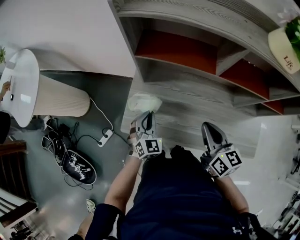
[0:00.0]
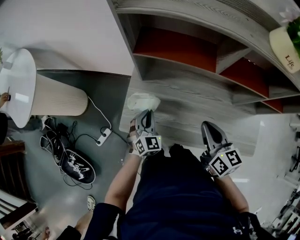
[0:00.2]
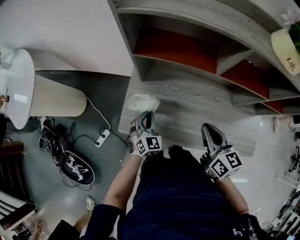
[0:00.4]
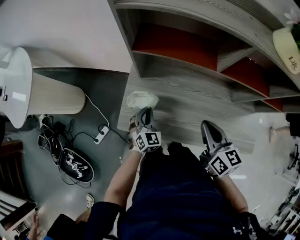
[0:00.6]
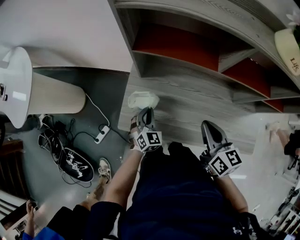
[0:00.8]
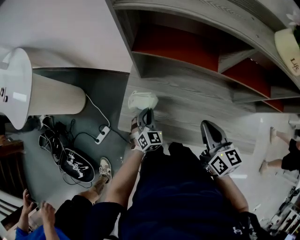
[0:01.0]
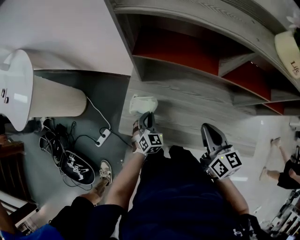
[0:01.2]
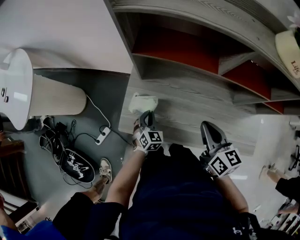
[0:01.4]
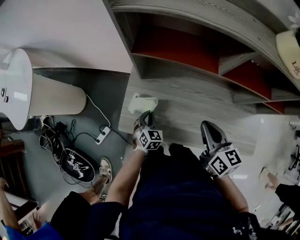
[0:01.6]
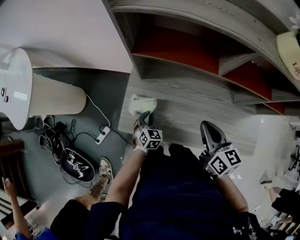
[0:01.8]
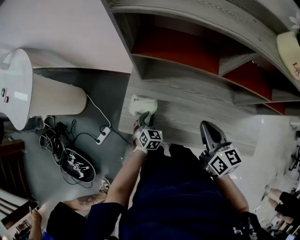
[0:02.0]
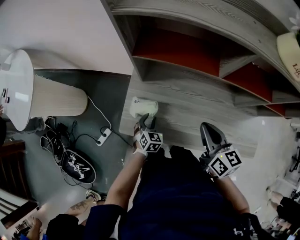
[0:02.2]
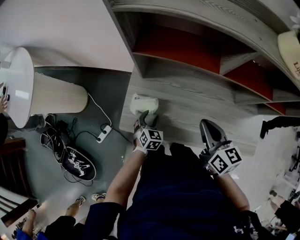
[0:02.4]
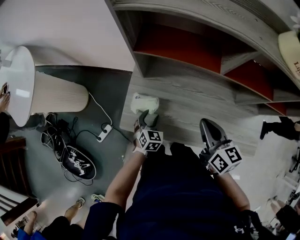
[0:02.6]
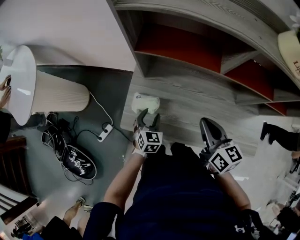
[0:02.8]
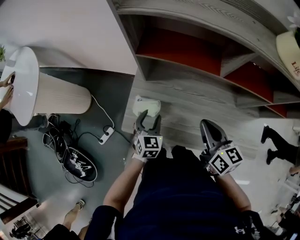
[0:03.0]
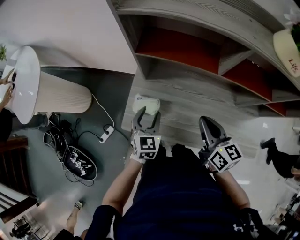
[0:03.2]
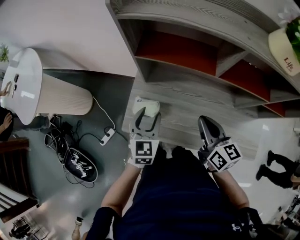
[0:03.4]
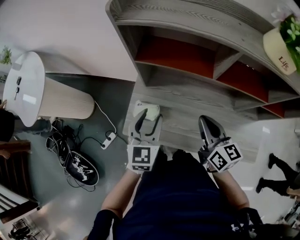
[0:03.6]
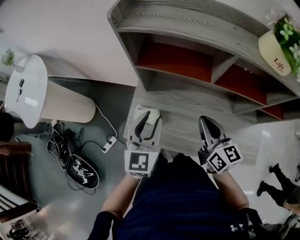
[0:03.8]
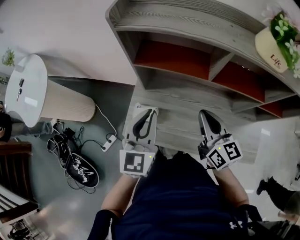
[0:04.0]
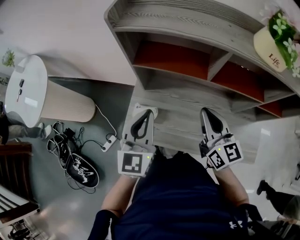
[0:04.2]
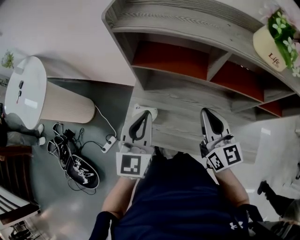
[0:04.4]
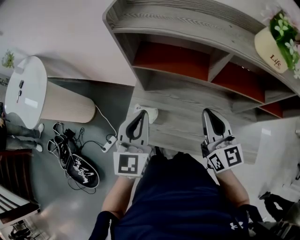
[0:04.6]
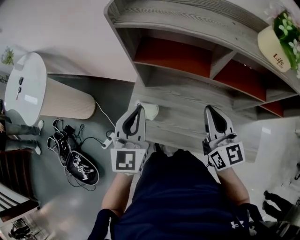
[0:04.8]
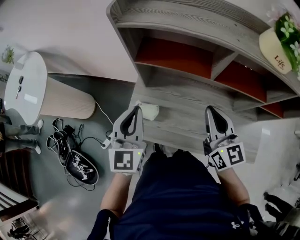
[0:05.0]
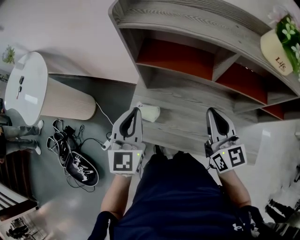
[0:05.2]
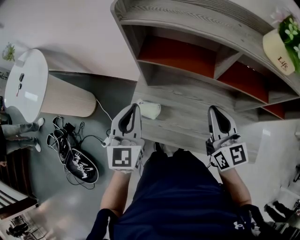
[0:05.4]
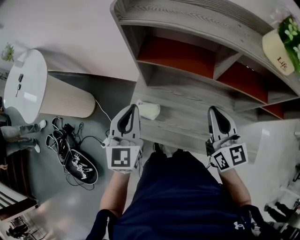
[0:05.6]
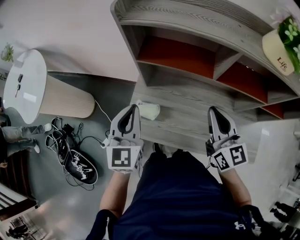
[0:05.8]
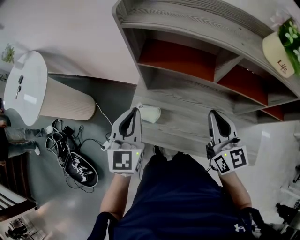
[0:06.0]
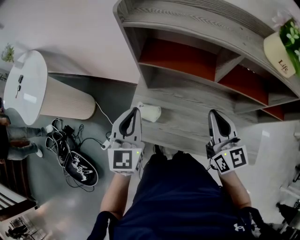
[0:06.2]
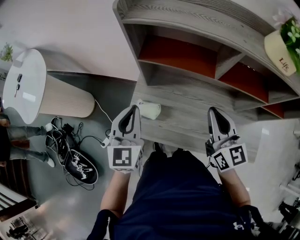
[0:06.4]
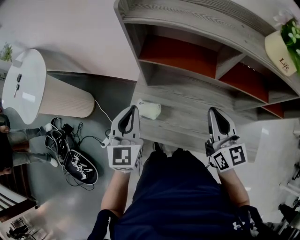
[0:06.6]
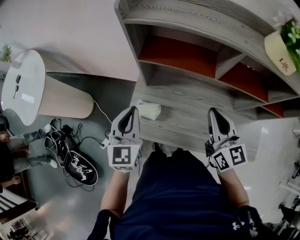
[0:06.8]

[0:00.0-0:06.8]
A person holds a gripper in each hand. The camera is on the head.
0:00.0 to 0:01.4: The left gripper shifts about 10 cm downward.
0:01.4 to 0:02.8: The left gripper opens.
0:02.8 to 0:04.0: The right gripper goes approximately 10 cm upward. The left gripper moves upward, approximately 30 cm, tilts its fingers roughly 30 degrees upward, and closes its fingers.
0:04.0 to 0:05.4: The left gripper heads to the left, covering some 5 cm.
0:05.4 to 0:06.8: The grippers stay close to where they were, moving slightly.

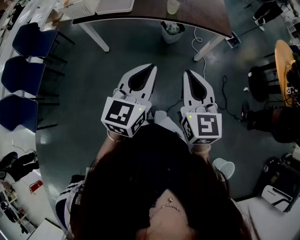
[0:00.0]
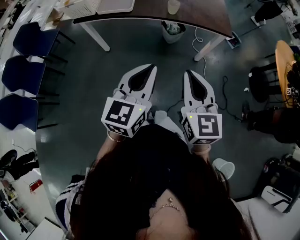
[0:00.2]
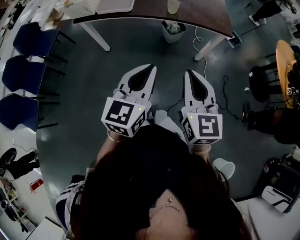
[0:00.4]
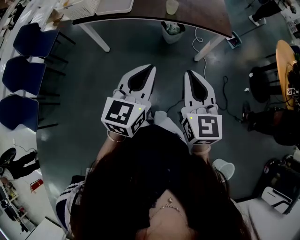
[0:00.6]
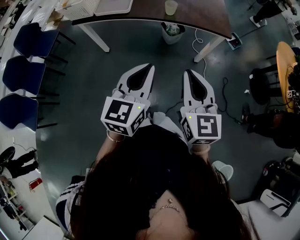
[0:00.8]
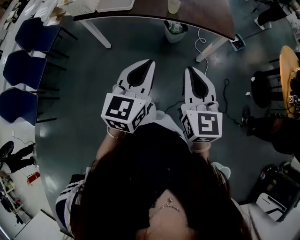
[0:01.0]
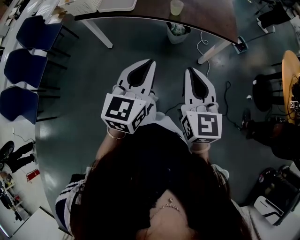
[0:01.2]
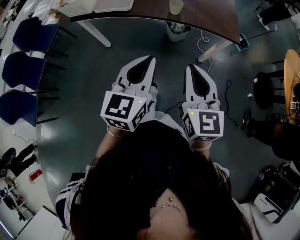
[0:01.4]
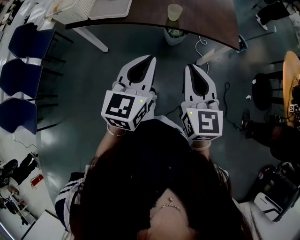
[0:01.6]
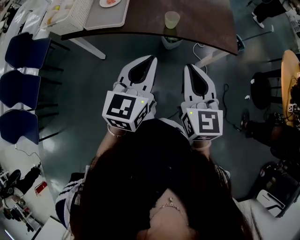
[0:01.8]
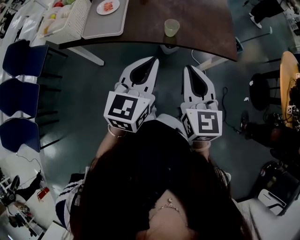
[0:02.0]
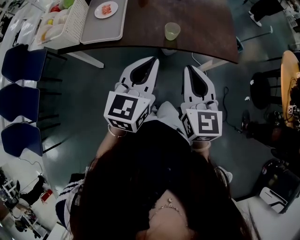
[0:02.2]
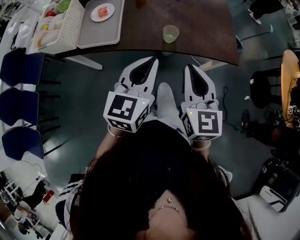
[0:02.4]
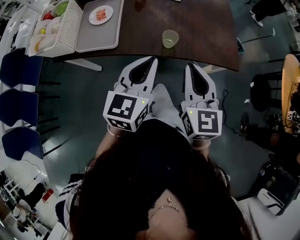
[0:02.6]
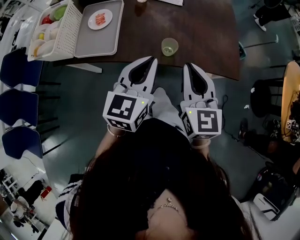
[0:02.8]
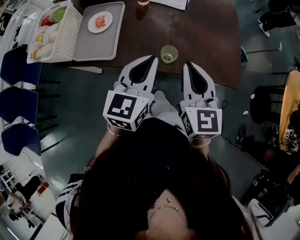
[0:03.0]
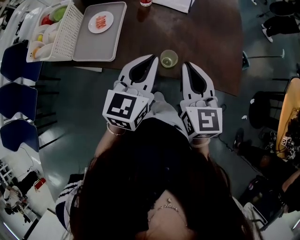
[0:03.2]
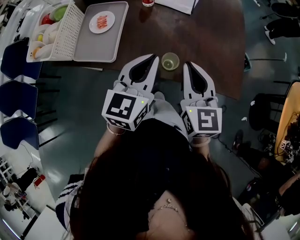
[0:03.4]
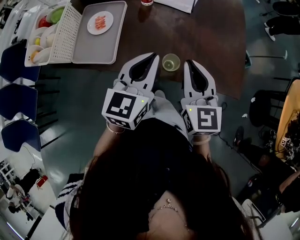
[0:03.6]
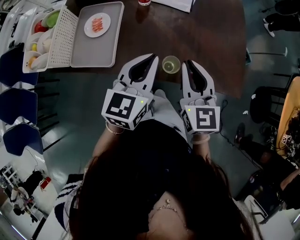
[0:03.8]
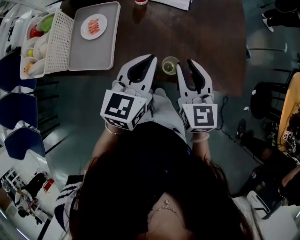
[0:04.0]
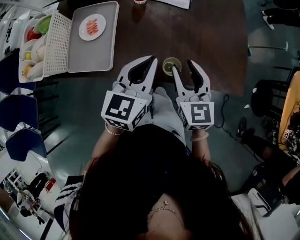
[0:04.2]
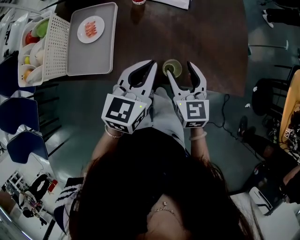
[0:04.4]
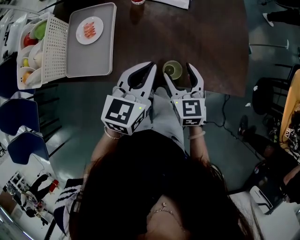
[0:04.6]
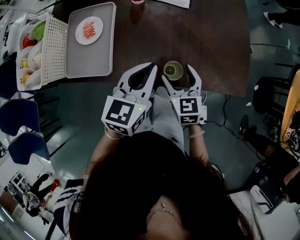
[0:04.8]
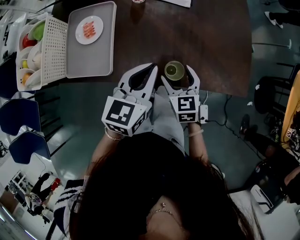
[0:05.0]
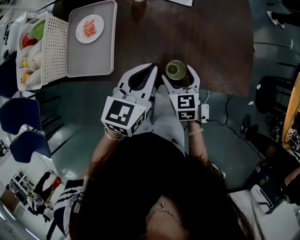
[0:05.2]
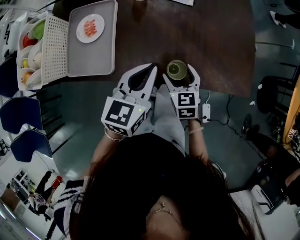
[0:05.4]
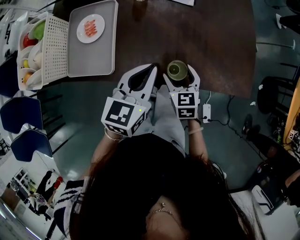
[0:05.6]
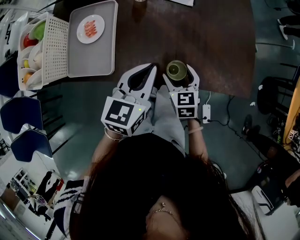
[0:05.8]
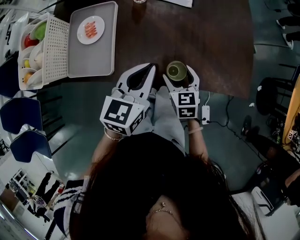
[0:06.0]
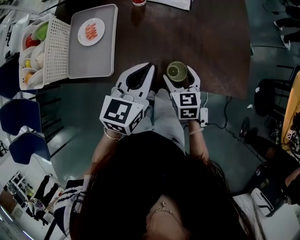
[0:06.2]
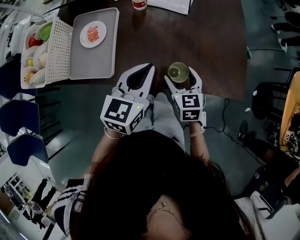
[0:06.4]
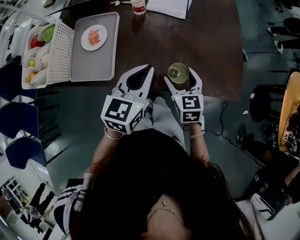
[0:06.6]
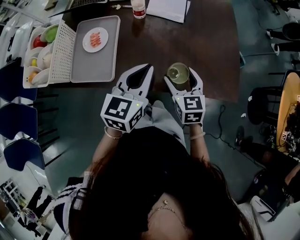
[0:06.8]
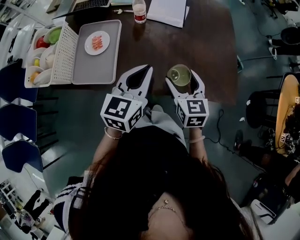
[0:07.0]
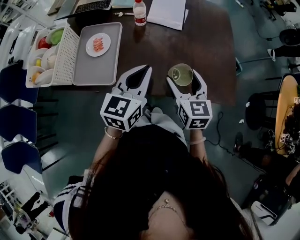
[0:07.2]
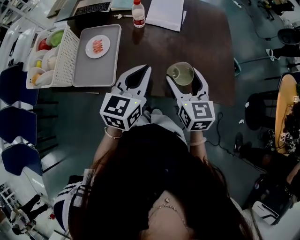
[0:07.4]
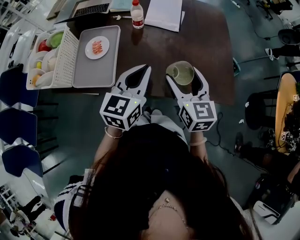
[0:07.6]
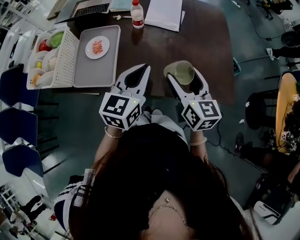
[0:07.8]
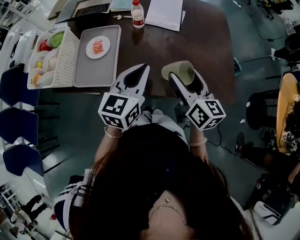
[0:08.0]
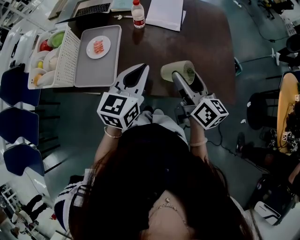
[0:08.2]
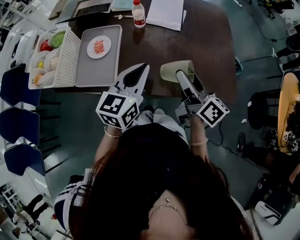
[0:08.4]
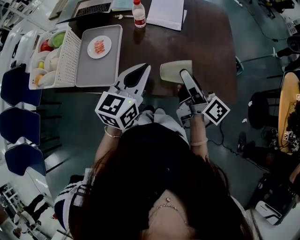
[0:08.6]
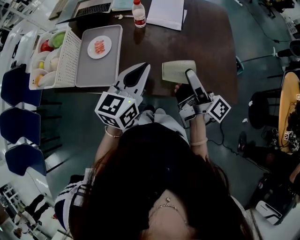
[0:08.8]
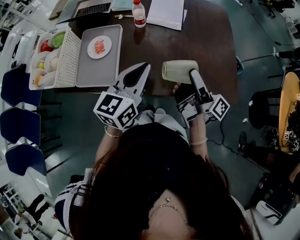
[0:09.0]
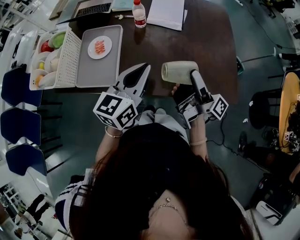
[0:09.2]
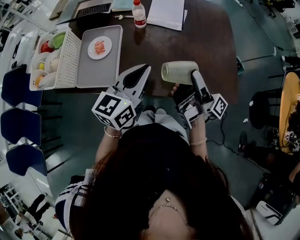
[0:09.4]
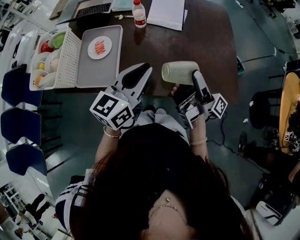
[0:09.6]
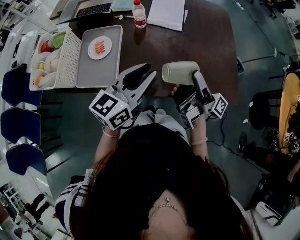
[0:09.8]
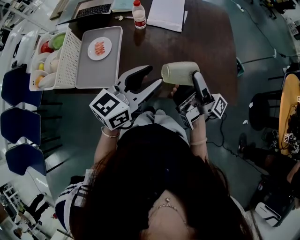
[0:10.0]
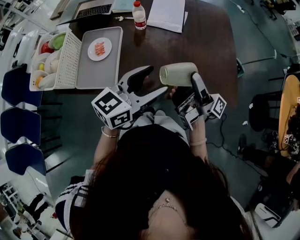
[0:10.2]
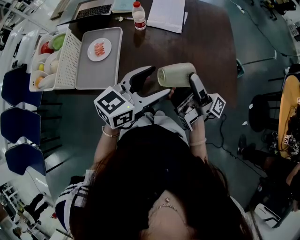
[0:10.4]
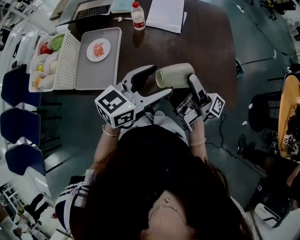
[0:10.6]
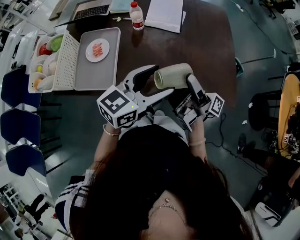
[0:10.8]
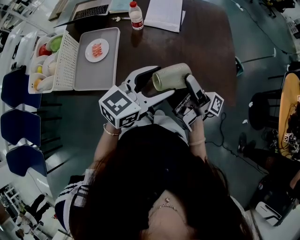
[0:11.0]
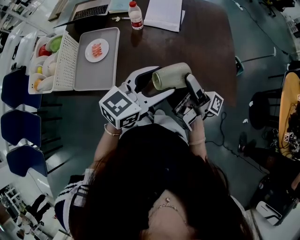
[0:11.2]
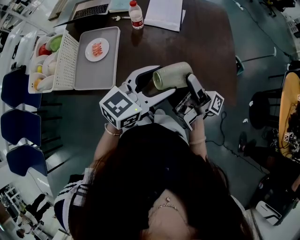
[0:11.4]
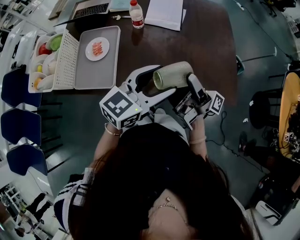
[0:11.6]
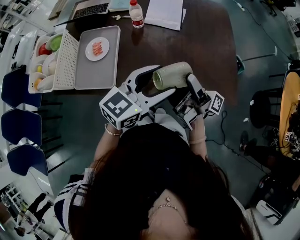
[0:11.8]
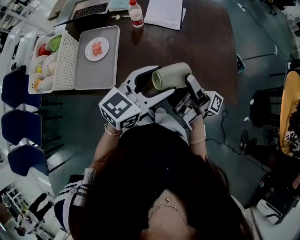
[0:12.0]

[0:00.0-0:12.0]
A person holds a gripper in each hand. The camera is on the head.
0:00.0 to 0:01.6: The two grippers go approximately 15 cm forward.
0:01.6 to 0:03.0: The two grippers go some 30 cm forward.
0:03.0 to 0:04.4: The right gripper is displaced downward and forward by approximately 15 cm, and opens its fingers. Meanwhile the left gripper travels forward and downward by about 10 cm.
0:04.4 to 0:06.0: The right gripper moves downward, roughly 10 cm.
0:06.0 to 0:07.6: The right gripper shifts some 20 cm upward, and rotates roughly 20 degrees. Meanwhile the left gripper goes roughly 5 cm upward.
0:07.6 to 0:09.0: The right gripper twists about 80 degrees clockwise, seen from behind.
0:09.0 to 0:10.4: The left gripper goes roughly 5 cm to the right, rotates some 20 degrees, and opens its fingers.
0:10.4 to 0:12.0: The grippers make only small movements.

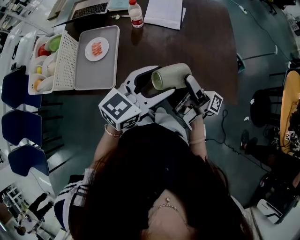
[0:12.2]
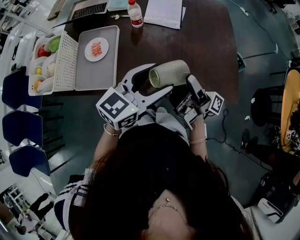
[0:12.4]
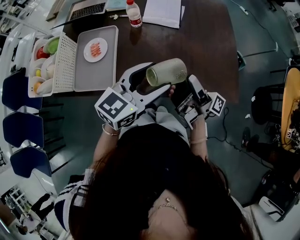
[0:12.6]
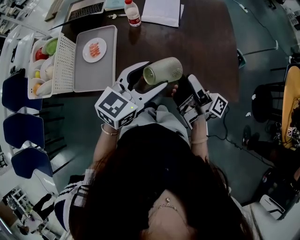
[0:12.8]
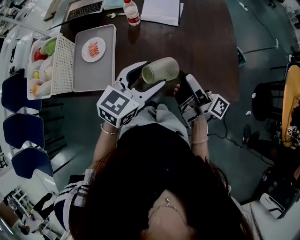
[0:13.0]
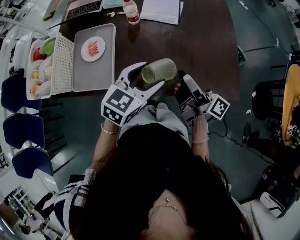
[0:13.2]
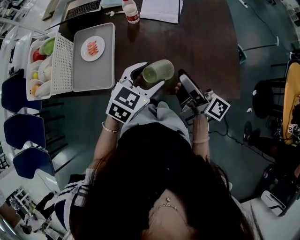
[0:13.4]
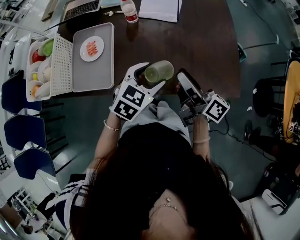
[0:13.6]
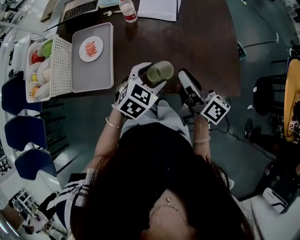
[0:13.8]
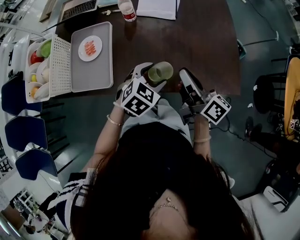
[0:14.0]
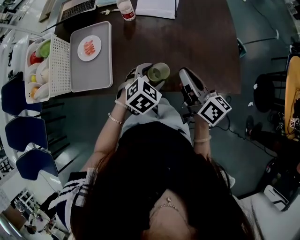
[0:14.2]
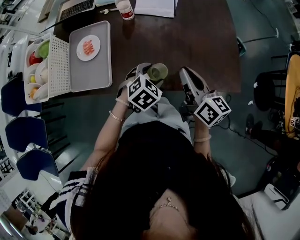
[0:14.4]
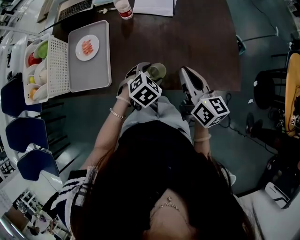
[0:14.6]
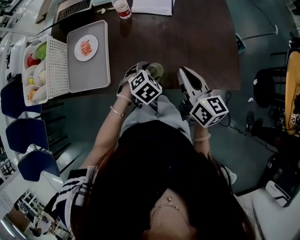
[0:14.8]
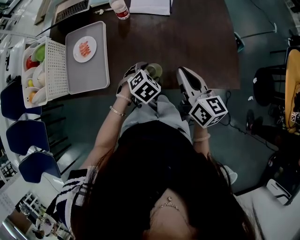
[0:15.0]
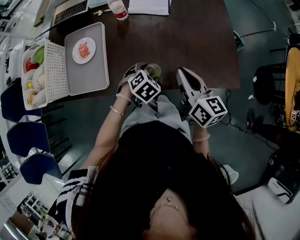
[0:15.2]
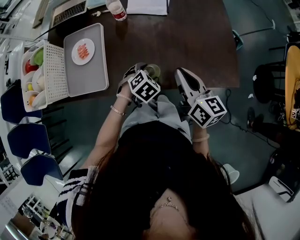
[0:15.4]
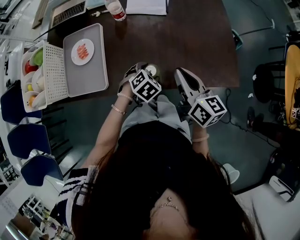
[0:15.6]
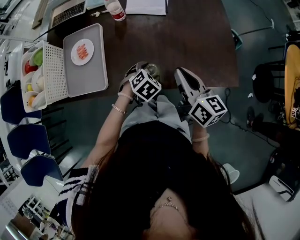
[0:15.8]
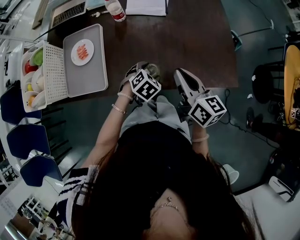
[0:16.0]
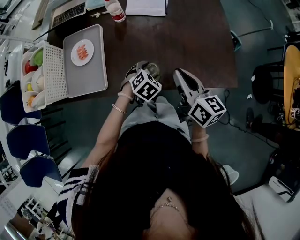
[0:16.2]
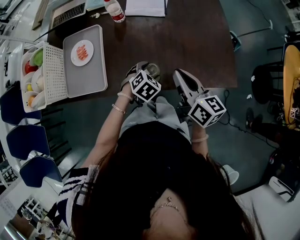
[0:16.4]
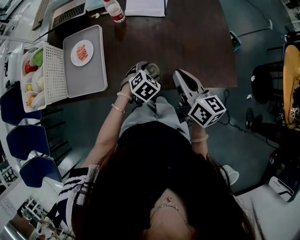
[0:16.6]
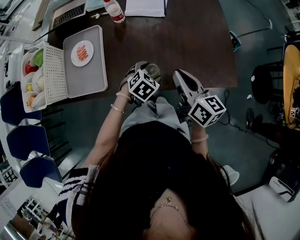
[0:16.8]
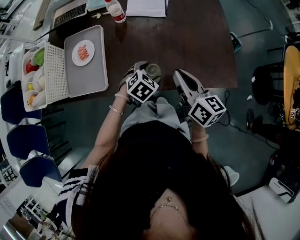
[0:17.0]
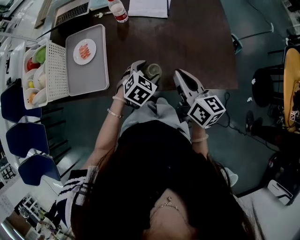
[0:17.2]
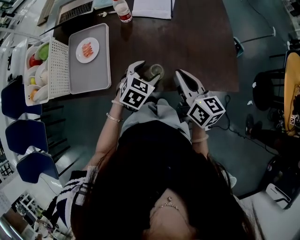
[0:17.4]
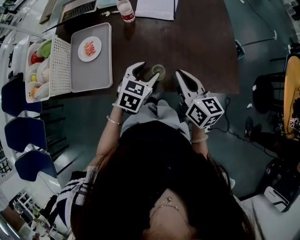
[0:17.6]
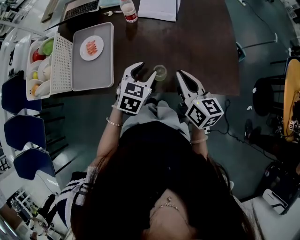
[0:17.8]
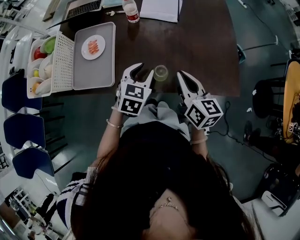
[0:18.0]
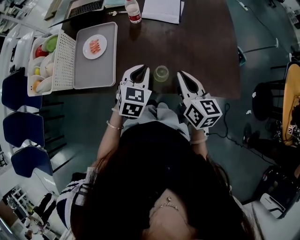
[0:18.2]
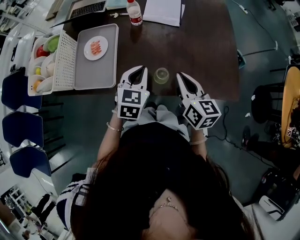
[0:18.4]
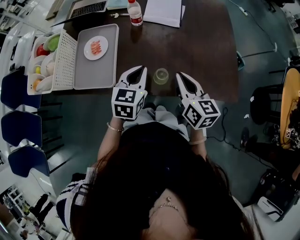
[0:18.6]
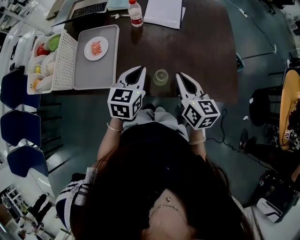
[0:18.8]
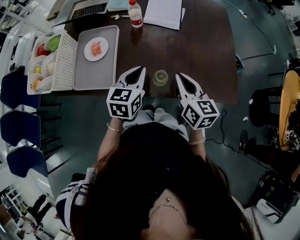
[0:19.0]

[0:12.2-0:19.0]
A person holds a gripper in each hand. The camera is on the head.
0:12.2 to 0:13.6: The left gripper goes some 10 cm downward, and rotates about 30 degrees. The right gripper turns by about 40 degrees, and closes up.
0:13.6 to 0:15.0: The left gripper heads downward, covering roughly 15 cm, and swivels approximately 30 degrees, while the right gripper changes its angle by approximately 40 degrees, and closes up.
0:15.0 to 0:16.2: The grippers make only small movements.
0:16.2 to 0:17.6: The left gripper heads upward, covering approximately 10 cm, and swivels about 30 degrees.
0:17.6 to 0:19.0: The left gripper heads upward and to the left, covering about 10 cm, rotates approximately 30 degrees, and closes up.
